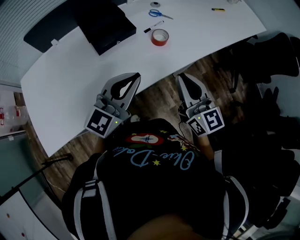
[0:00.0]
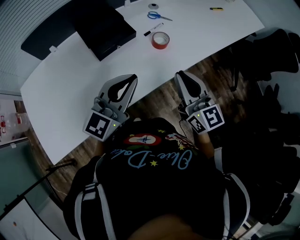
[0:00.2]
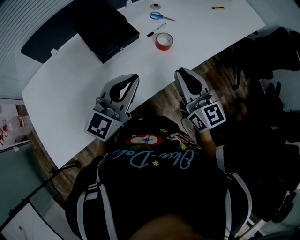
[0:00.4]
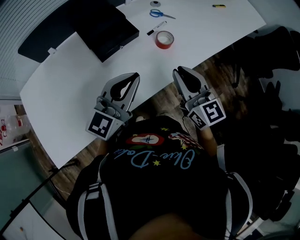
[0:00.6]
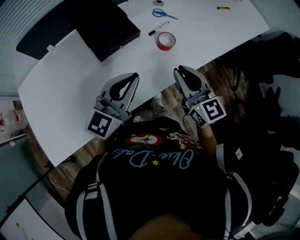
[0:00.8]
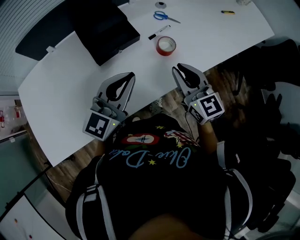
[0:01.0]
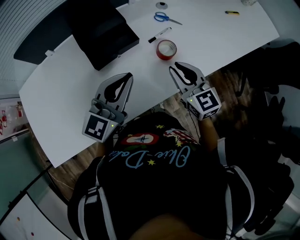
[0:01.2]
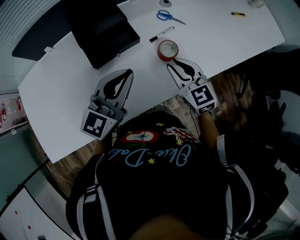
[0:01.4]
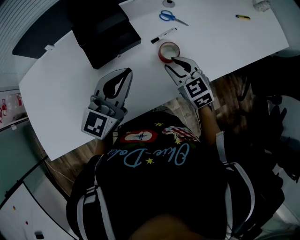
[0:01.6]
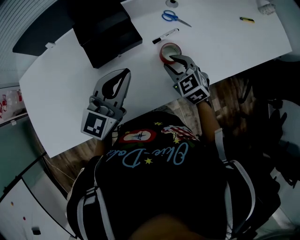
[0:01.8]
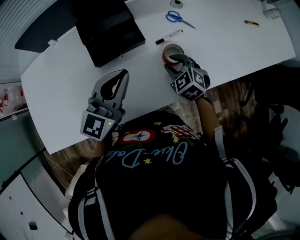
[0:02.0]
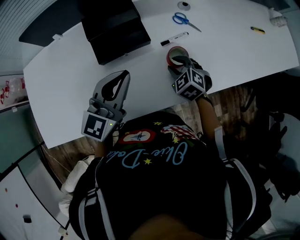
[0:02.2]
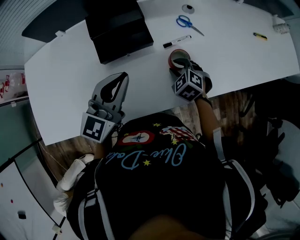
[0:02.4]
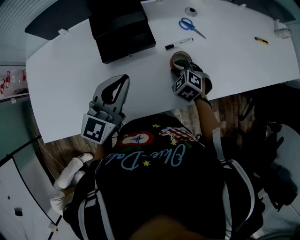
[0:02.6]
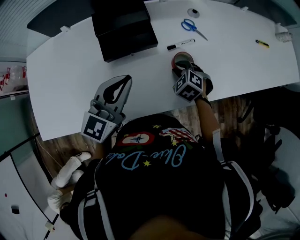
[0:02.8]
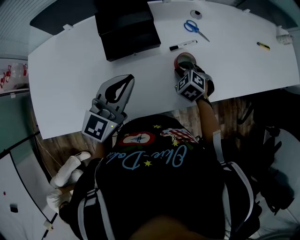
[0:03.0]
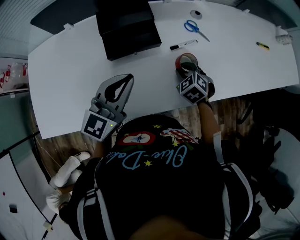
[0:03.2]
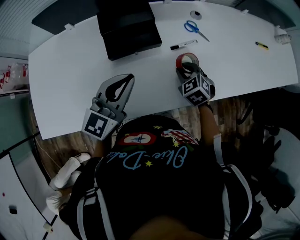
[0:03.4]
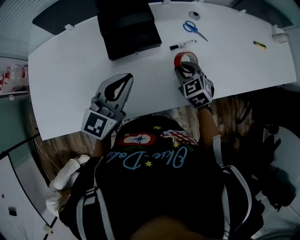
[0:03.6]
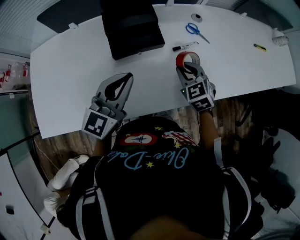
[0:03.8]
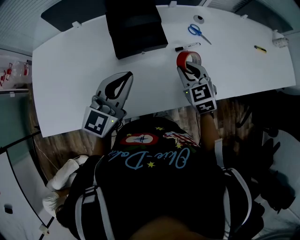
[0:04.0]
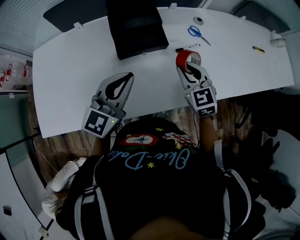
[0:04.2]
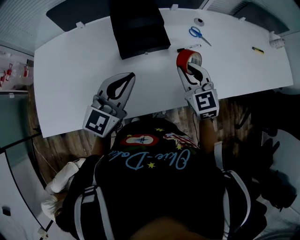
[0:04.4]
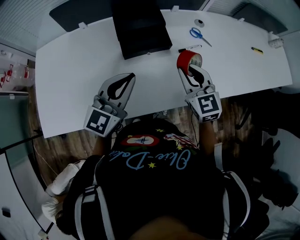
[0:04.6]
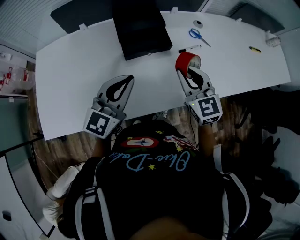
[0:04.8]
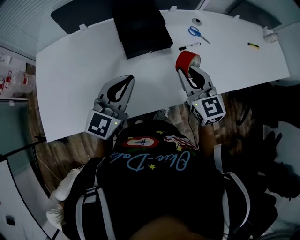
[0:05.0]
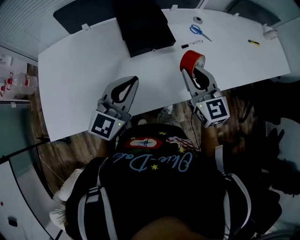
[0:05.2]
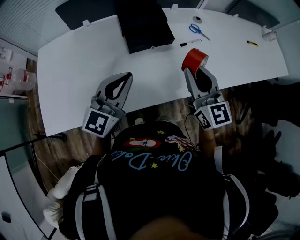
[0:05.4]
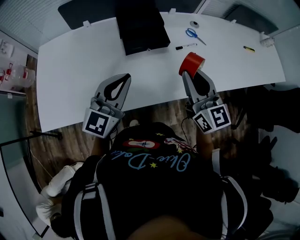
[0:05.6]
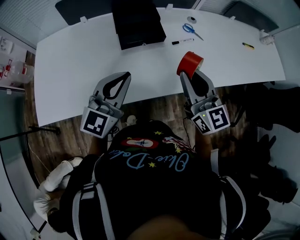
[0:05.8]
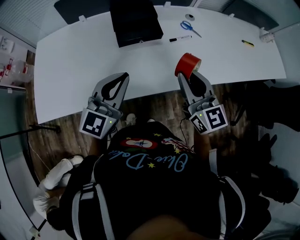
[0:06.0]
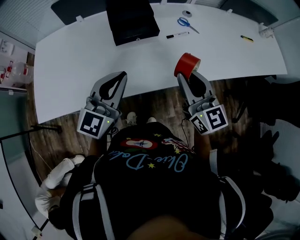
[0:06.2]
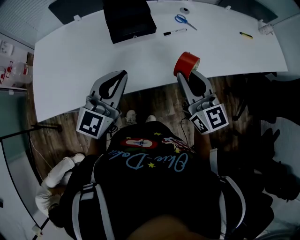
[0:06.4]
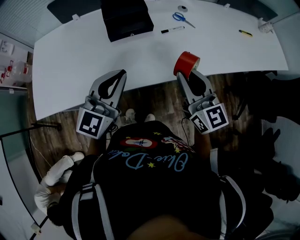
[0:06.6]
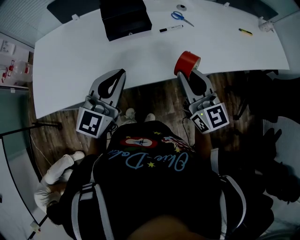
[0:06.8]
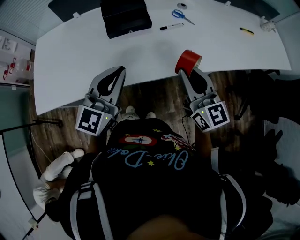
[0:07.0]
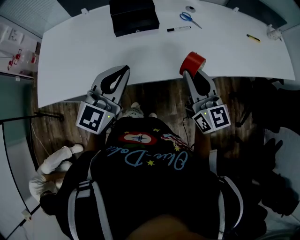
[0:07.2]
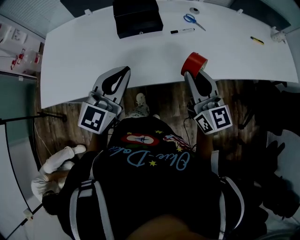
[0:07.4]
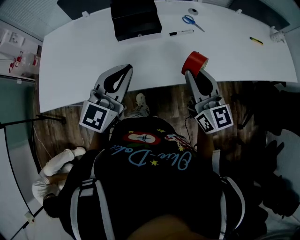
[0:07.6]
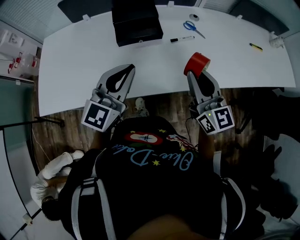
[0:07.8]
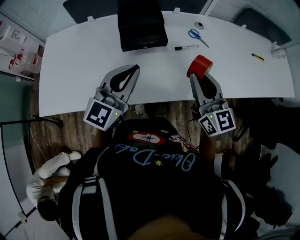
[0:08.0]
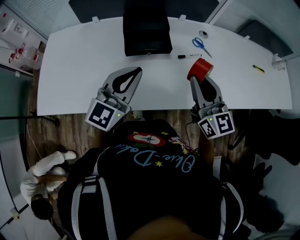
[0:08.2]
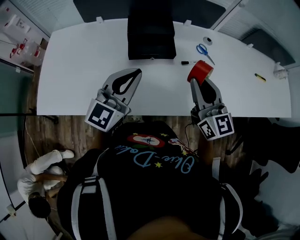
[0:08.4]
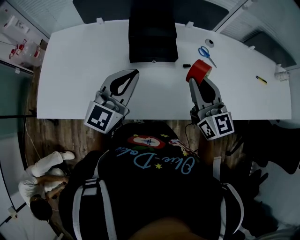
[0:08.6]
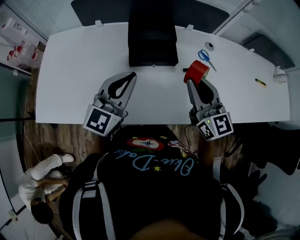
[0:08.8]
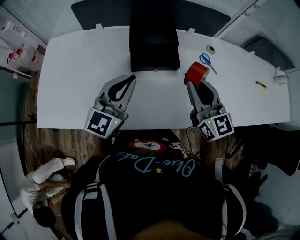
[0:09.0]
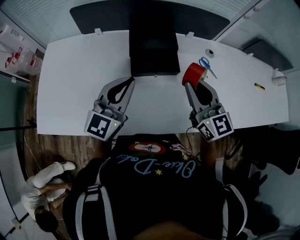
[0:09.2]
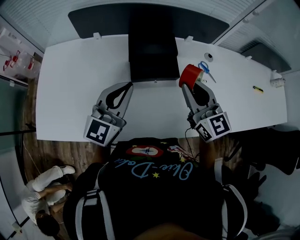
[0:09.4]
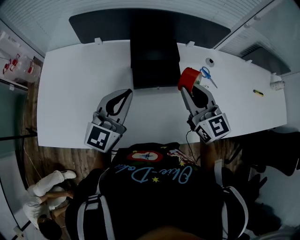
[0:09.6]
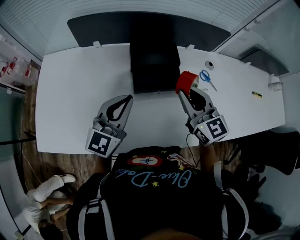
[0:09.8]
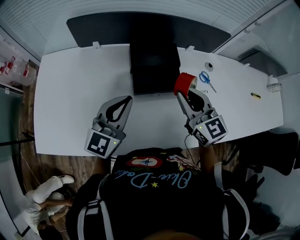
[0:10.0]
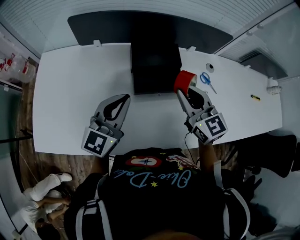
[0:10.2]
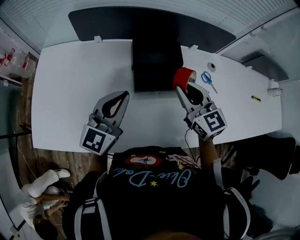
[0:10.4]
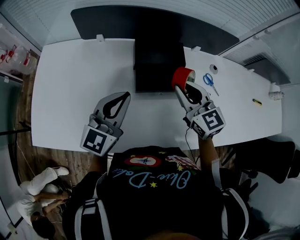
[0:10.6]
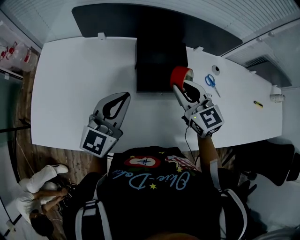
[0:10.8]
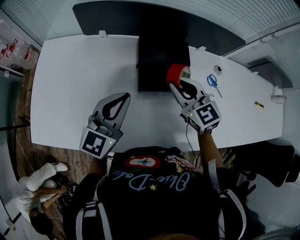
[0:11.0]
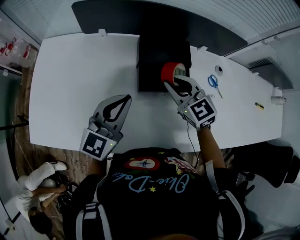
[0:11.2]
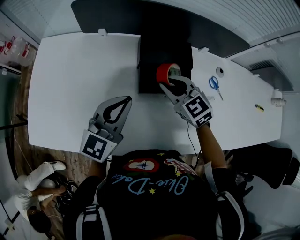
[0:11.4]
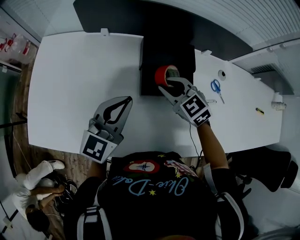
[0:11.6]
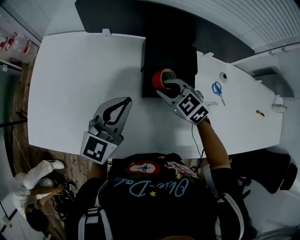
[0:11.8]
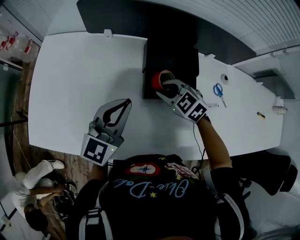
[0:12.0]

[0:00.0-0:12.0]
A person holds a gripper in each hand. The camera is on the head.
0:00.0 to 0:01.6: The left gripper goes some 15 cm forward; the right gripper heads forward and downward, covering roughly 25 cm, tips its fingers downward by some 40 degrees, and opens its fingers.
0:01.6 to 0:03.0: The right gripper moves downward, about 10 cm, and rotates about 40 degrees.
0:03.0 to 0:04.4: The left gripper moves some 5 cm; the right gripper shifts approximately 15 cm upward, and tilts its fingers approximately 40 degrees upward.
0:04.4 to 0:06.0: The right gripper goes some 15 cm backward and upward, and rotates about 30 degrees. Meanwhile the left gripper travels backward by roughly 10 cm.
0:06.0 to 0:07.6: The grippers both shift to the right by some 5 cm.
0:07.6 to 0:09.0: Both grippers travel together forward and to the left, about 15 cm.
0:09.0 to 0:10.4: The right gripper heads forward and to the left, covering approximately 10 cm. The left gripper goes some 5 cm to the left.
0:10.4 to 0:12.0: The right gripper moves downward and to the left, approximately 20 cm, and points its fingers roughly 30 degrees further downward.

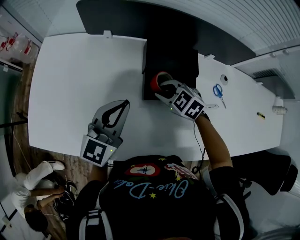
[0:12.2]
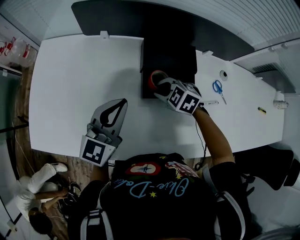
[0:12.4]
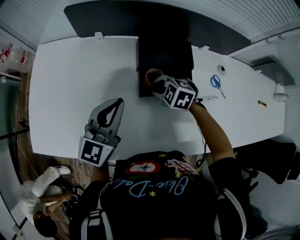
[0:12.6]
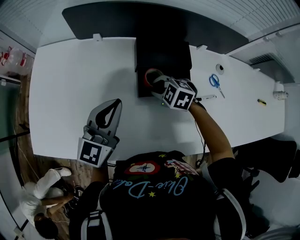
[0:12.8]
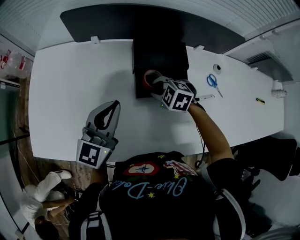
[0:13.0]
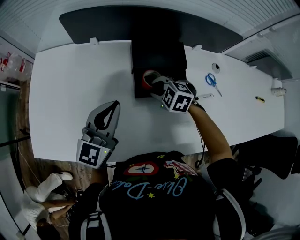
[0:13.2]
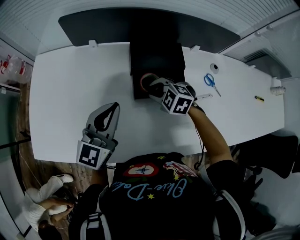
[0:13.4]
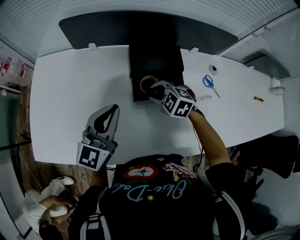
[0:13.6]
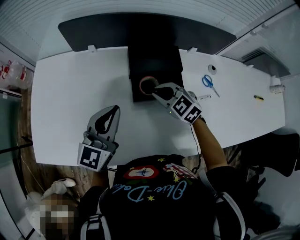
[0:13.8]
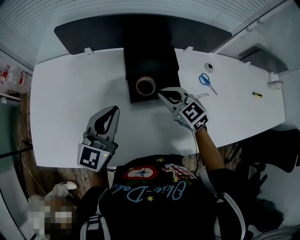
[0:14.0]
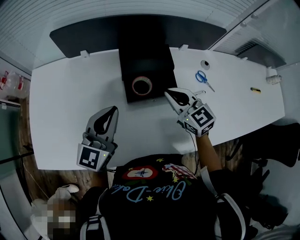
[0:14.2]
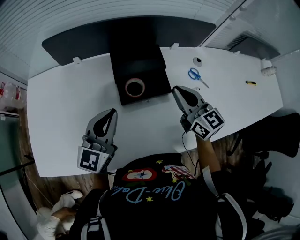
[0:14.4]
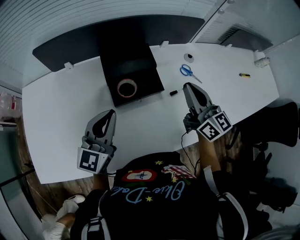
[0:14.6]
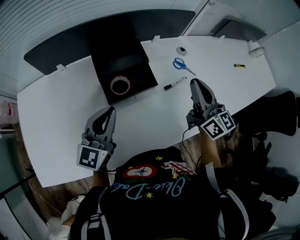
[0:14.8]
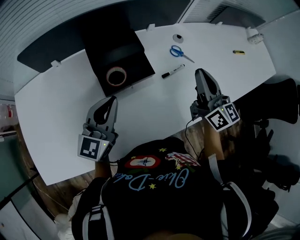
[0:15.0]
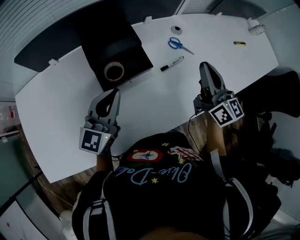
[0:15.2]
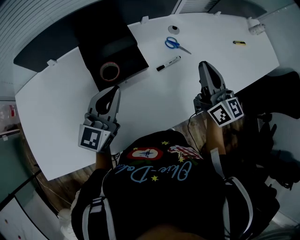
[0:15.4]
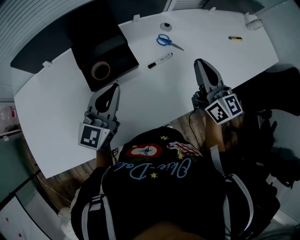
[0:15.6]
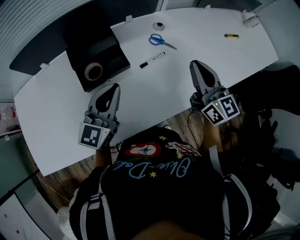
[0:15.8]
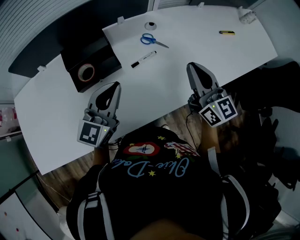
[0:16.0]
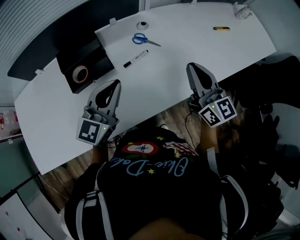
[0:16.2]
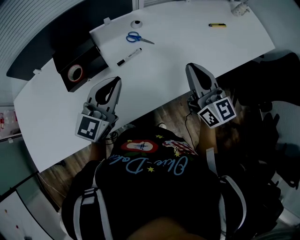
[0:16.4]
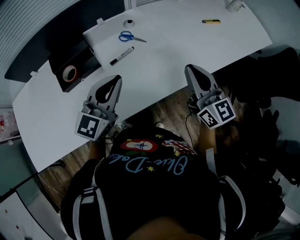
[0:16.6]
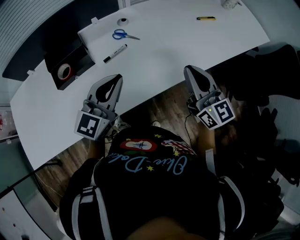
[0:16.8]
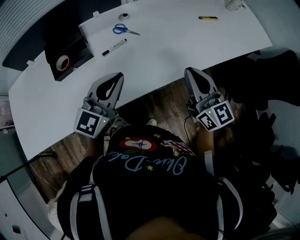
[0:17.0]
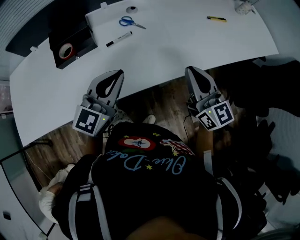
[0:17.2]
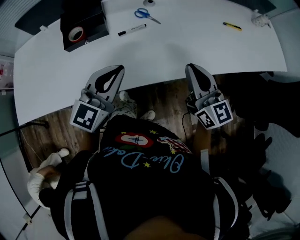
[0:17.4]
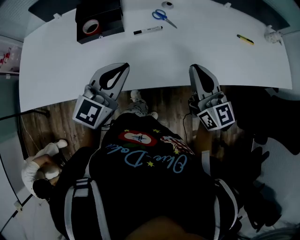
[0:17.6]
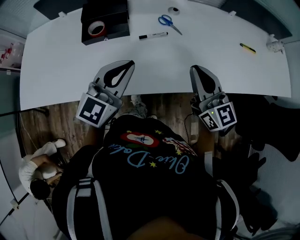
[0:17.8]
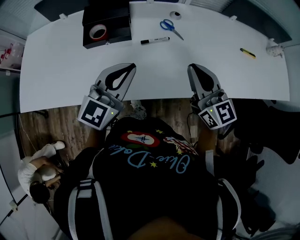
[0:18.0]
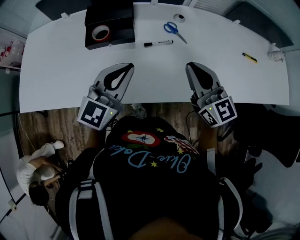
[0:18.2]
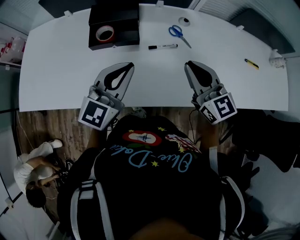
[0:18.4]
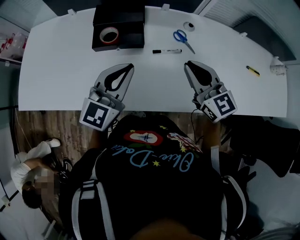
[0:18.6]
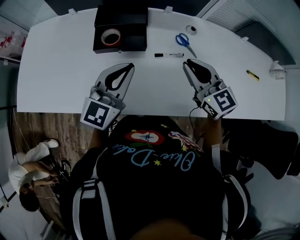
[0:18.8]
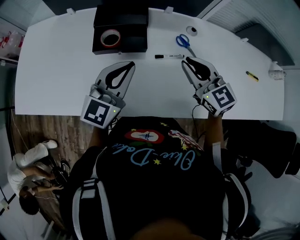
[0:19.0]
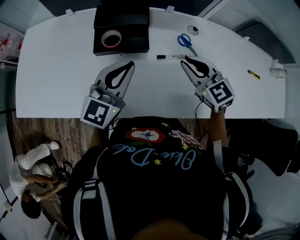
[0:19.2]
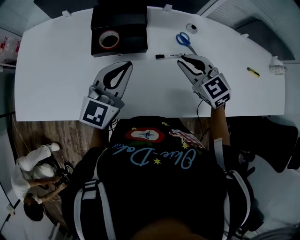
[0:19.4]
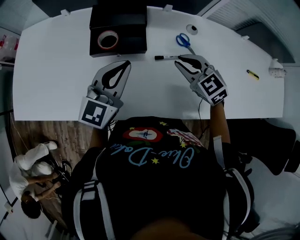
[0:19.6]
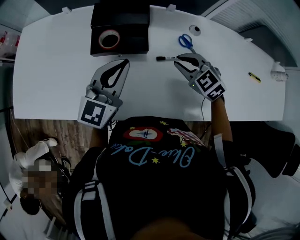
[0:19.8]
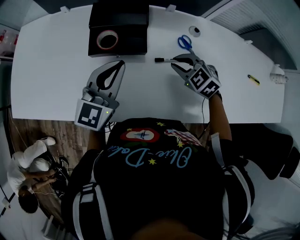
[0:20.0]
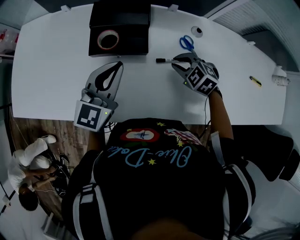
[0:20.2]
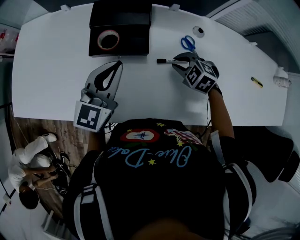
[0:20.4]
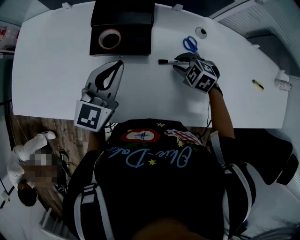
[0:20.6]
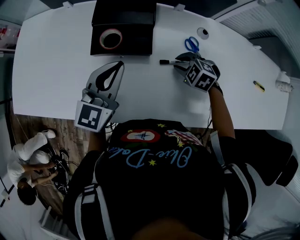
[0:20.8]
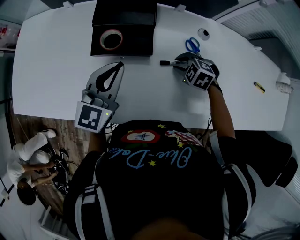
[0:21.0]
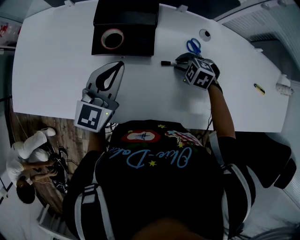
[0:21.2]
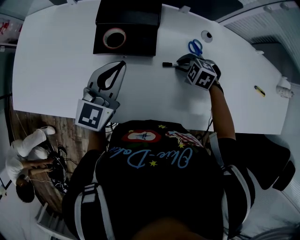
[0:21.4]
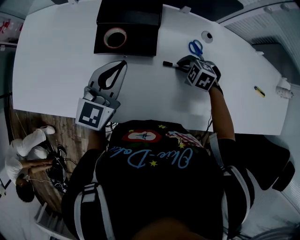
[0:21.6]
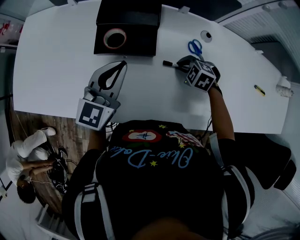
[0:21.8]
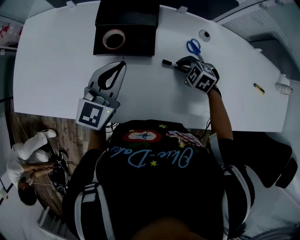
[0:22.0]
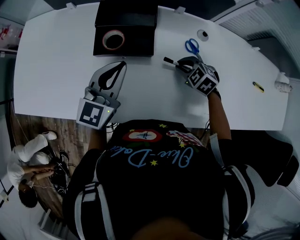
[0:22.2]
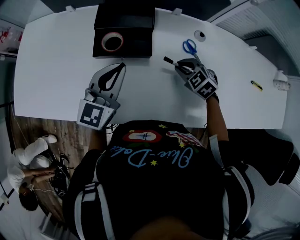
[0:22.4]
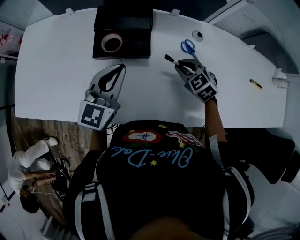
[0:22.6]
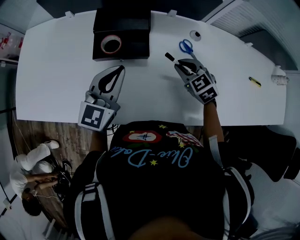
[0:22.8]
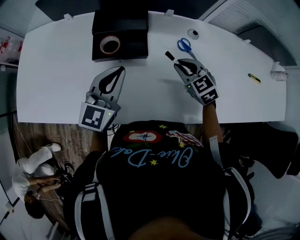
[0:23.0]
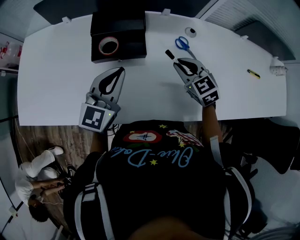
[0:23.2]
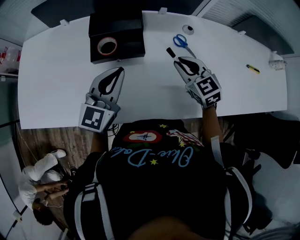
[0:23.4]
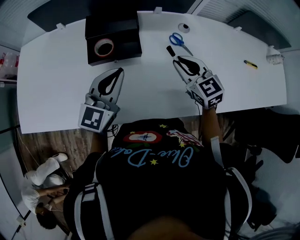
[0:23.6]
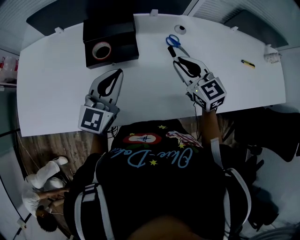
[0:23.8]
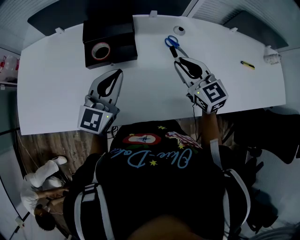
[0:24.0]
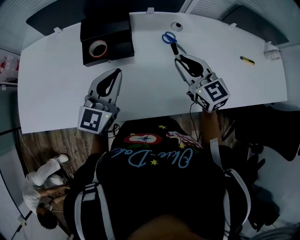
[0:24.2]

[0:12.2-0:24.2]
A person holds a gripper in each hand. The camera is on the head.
0:12.2 to 0:13.8: The grippers move only a little.
0:13.8 to 0:15.2: The right gripper ends up roughly 35 cm from where it was, and tilts its fingers some 40 degrees upward; the left gripper moves some 10 cm.
0:15.2 to 0:16.6: Both grippers travel together to the right, some 25 cm.
0:16.6 to 0:18.2: The left gripper is displaced to the left by approximately 5 cm. Meanwhile the right gripper travels to the left by some 10 cm, and changes its angle by some 30 degrees.
0:18.2 to 0:19.8: The left gripper is displaced forward and to the left by approximately 10 cm; the right gripper is displaced downward, forward and to the left by approximately 20 cm, and tips its fingers downward by some 40 degrees.
0:19.8 to 0:21.2: The right gripper shifts some 10 cm downward, and turns by approximately 30 degrees.
0:21.2 to 0:22.6: The right gripper moves upward, approximately 5 cm, and rotates some 30 degrees.
0:22.6 to 0:24.2: The right gripper shifts roughly 15 cm upward and backward, and tilts its fingers roughly 30 degrees upward; the left gripper shifts by about 5 cm.
